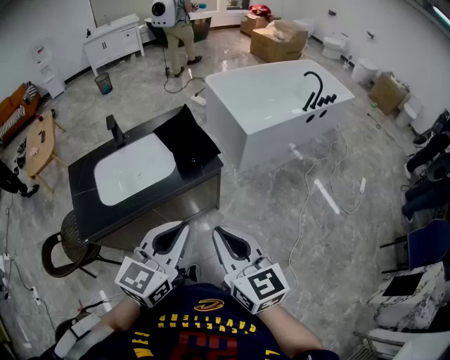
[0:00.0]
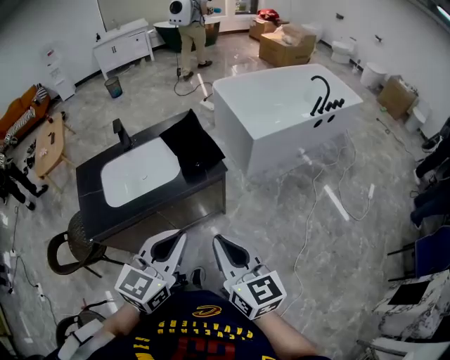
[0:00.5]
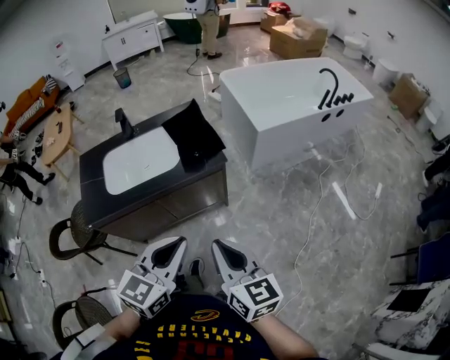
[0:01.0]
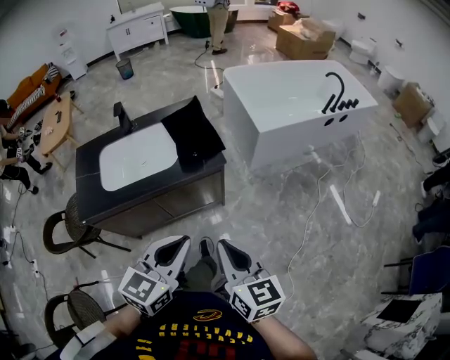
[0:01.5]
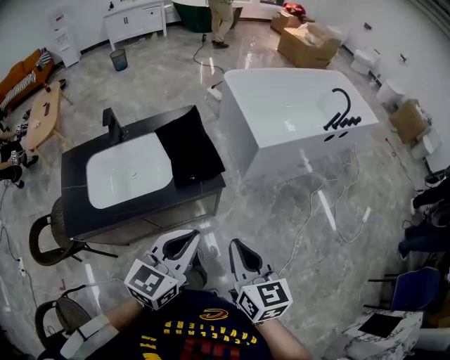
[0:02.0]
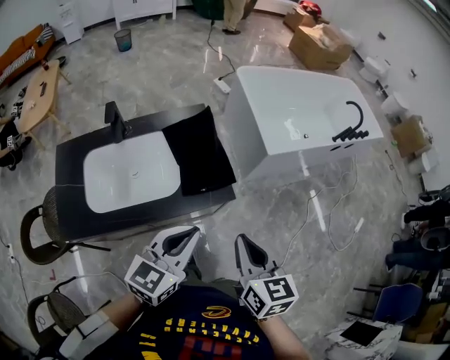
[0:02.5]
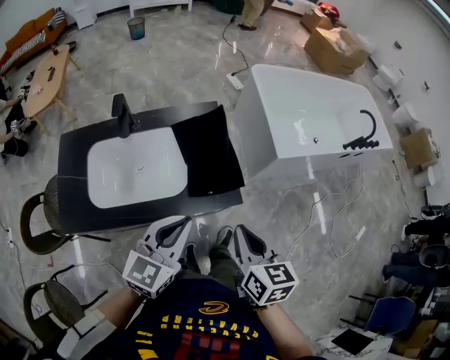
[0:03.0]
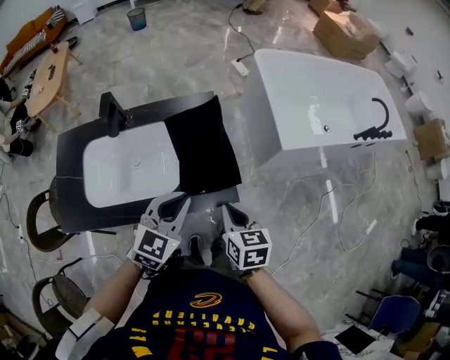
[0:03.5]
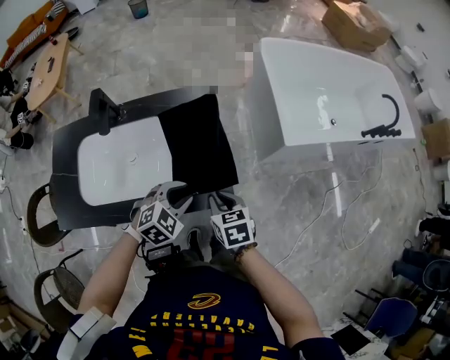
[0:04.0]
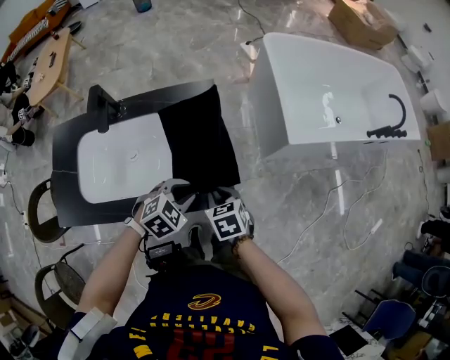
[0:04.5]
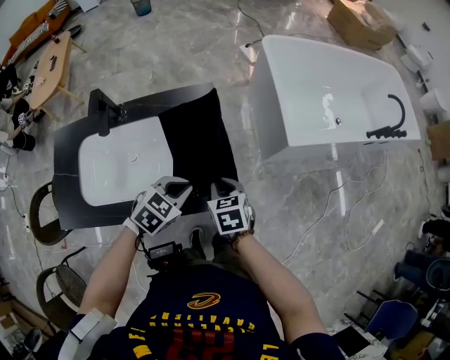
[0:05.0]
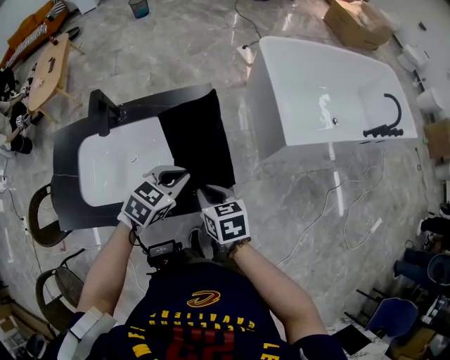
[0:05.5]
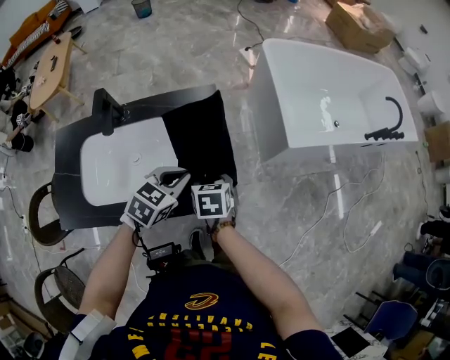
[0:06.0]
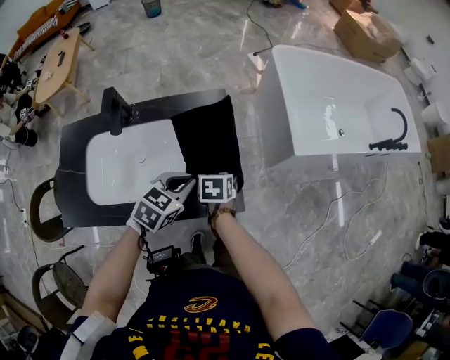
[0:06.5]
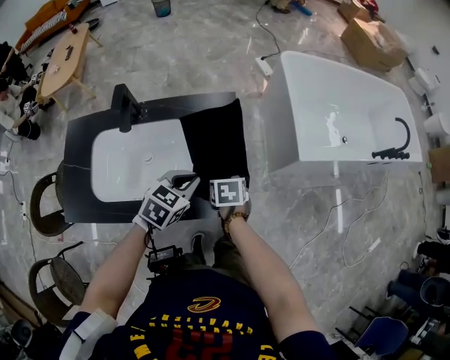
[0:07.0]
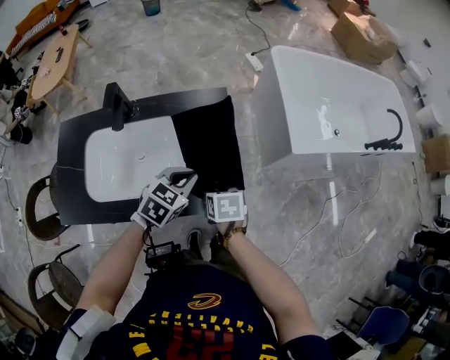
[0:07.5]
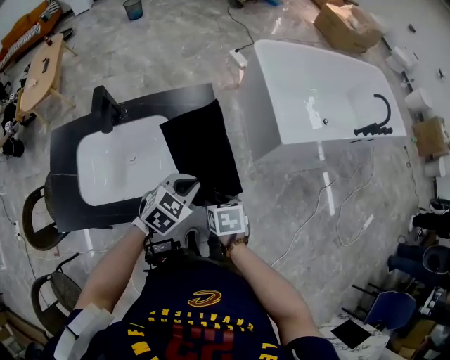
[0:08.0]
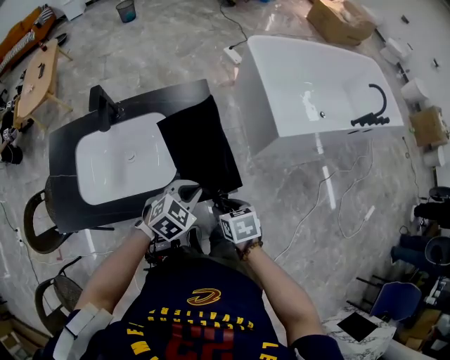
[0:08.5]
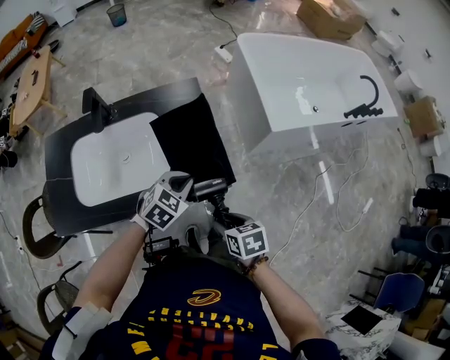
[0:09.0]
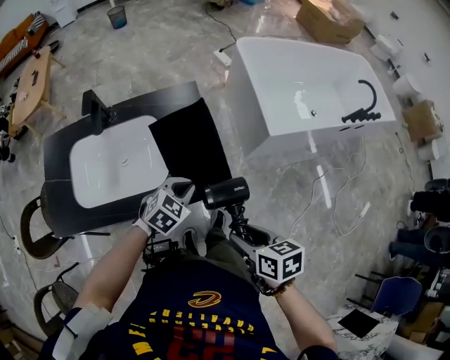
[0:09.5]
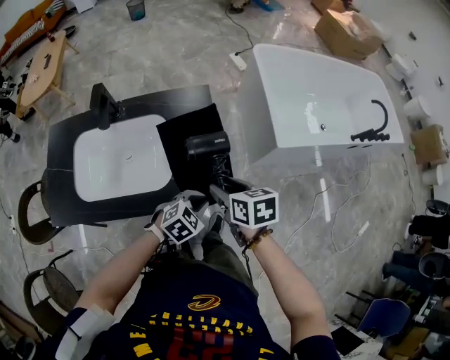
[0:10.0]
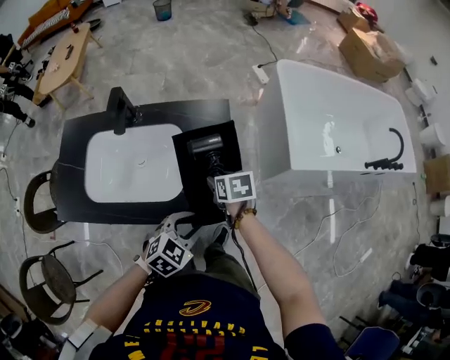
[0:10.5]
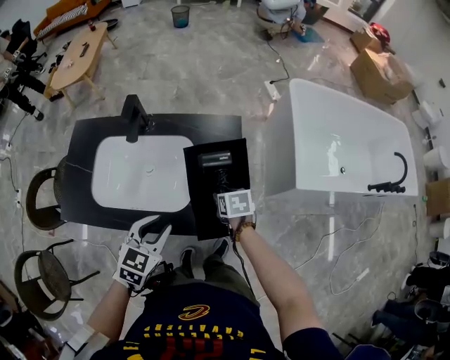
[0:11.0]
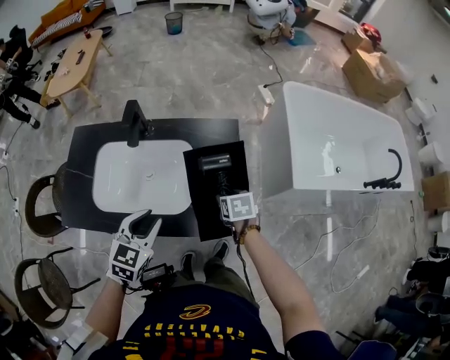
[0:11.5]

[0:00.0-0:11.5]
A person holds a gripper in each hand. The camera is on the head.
0:00.0 to 0:02.0: The left gripper shifts about 15 cm forward, downward and to the right; the right gripper heads forward, to the right and downward, covering about 15 cm.
0:02.0 to 0:04.0: Both grippers move forward and downward, roughly 35 cm. The left gripper points its fingers approximately 40 degrees further downward, and opens its fingers. Meanwhile the right gripper tilts its fingers about 30 degrees downward.
0:04.0 to 0:06.0: The right gripper heads forward and to the left, covering approximately 10 cm, and opens. Meanwhile the left gripper travels forward by approximately 5 cm, turns by about 20 degrees, and closes.
0:06.0 to 0:07.5: The grippers make only small movements.
0:07.5 to 0:09.5: The right gripper goes about 25 cm backward, to the right and upward. Meanwhile the left gripper travels backward and to the right by about 10 cm.
0:09.5 to 0:11.5: The right gripper travels forward and downward by some 30 cm, and changes its angle by about 30 degrees, while the left gripper heads to the left and upward, covering approximately 20 cm, changes its angle by roughly 40 degrees, and opens its fingers.

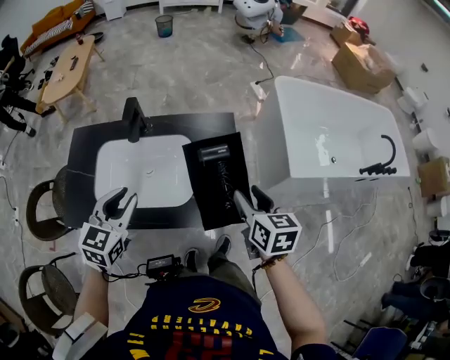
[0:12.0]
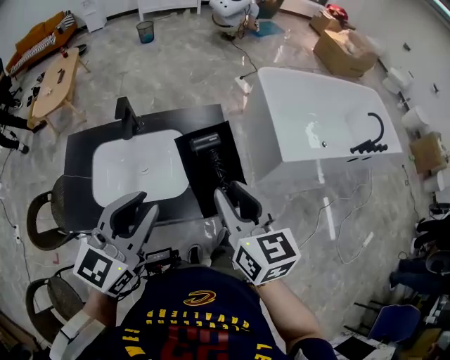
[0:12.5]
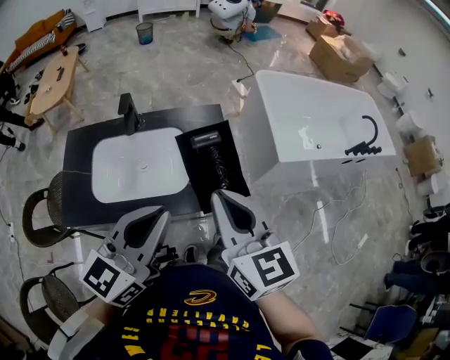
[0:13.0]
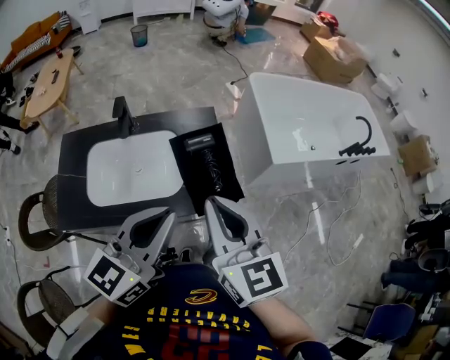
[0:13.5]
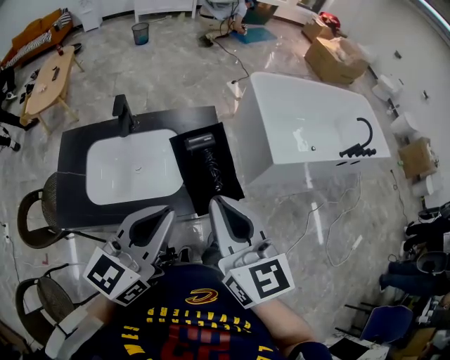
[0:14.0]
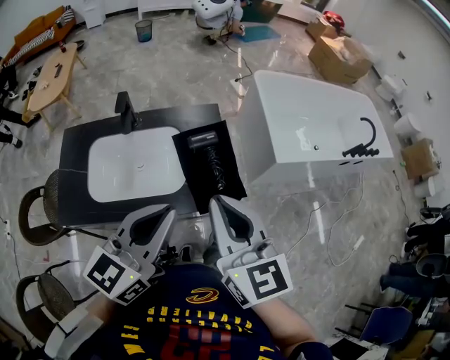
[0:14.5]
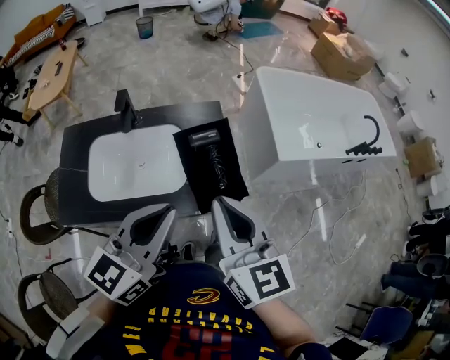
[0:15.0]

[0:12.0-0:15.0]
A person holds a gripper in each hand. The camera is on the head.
0:12.0 to 0:13.5: The left gripper goes about 25 cm upward, to the right and backward, turns by about 40 degrees, and closes its fingers, while the right gripper is displaced upward, backward and to the left by some 25 cm, changes its angle by about 30 degrees, and closes.
0:13.5 to 0:15.0: The grippers stay close to where they were, moving slightly.

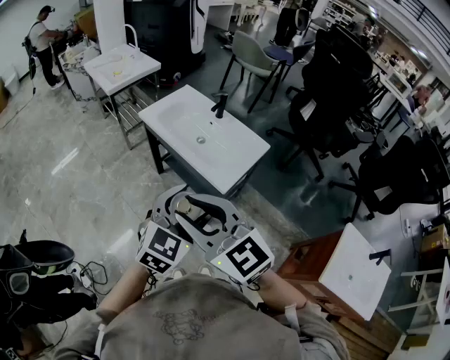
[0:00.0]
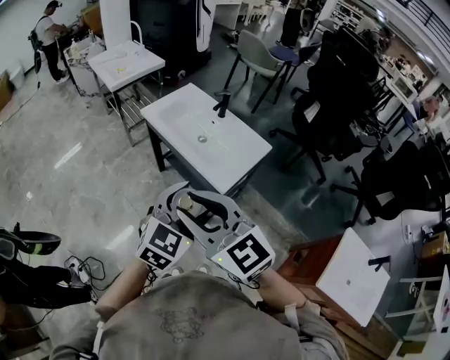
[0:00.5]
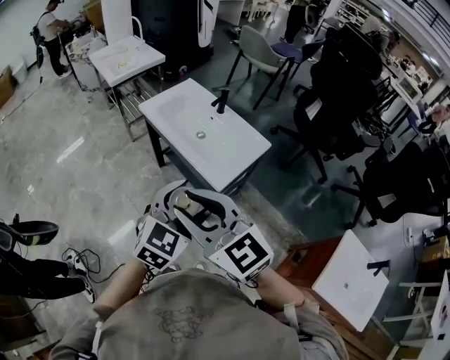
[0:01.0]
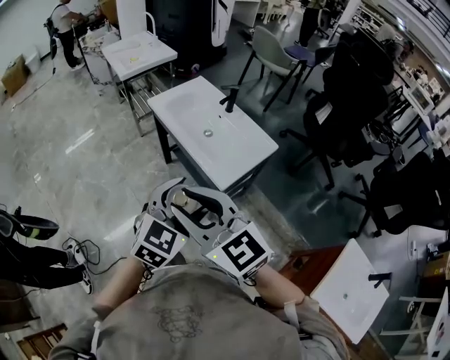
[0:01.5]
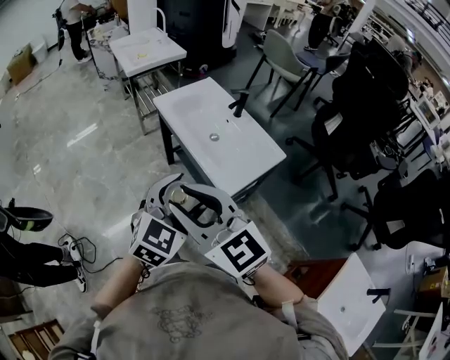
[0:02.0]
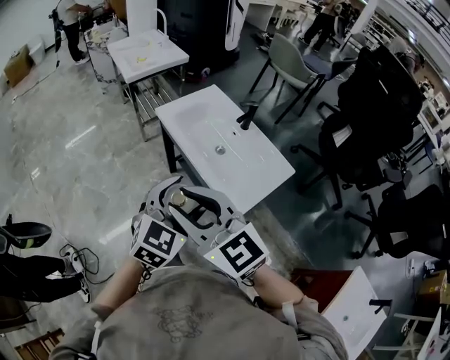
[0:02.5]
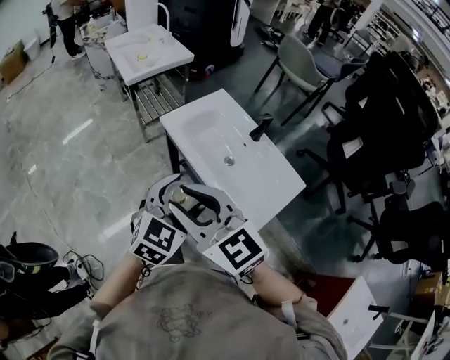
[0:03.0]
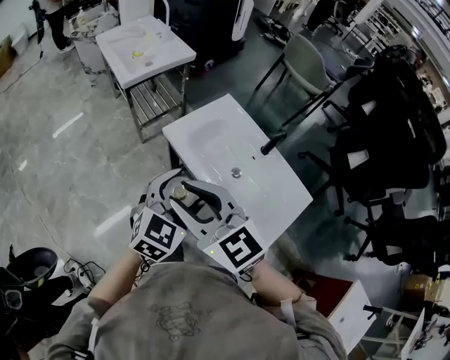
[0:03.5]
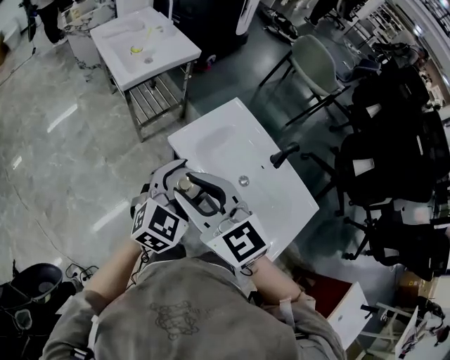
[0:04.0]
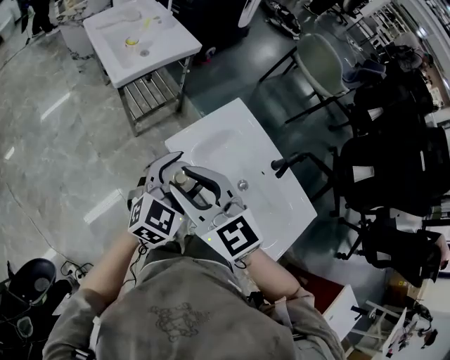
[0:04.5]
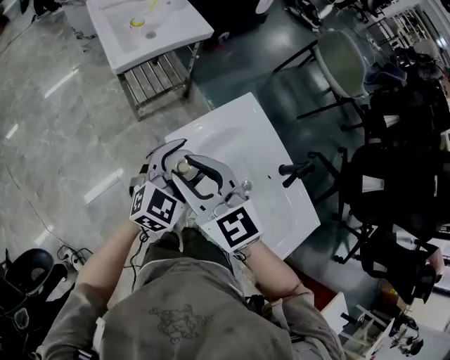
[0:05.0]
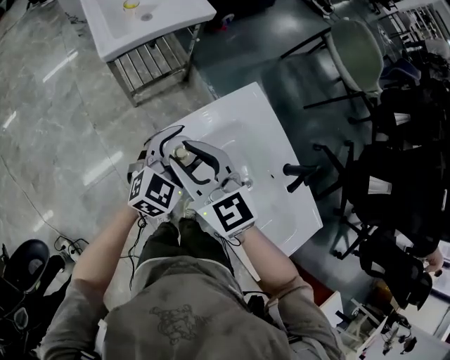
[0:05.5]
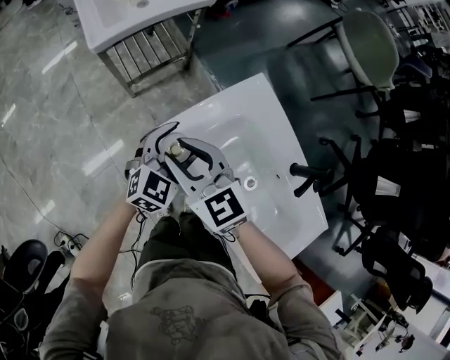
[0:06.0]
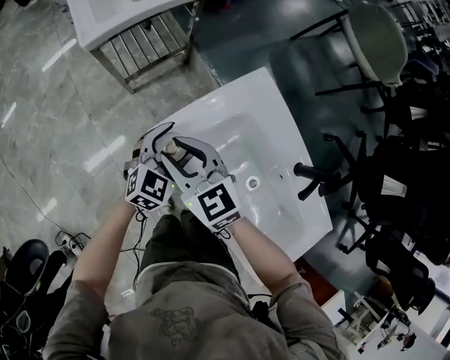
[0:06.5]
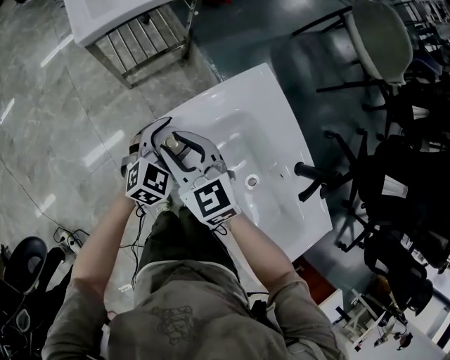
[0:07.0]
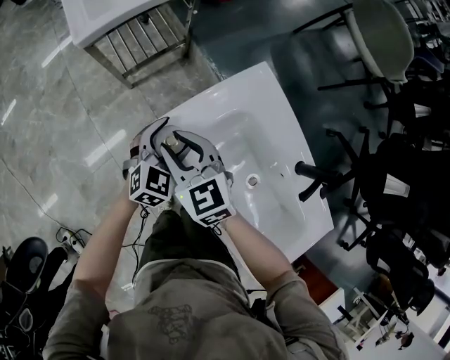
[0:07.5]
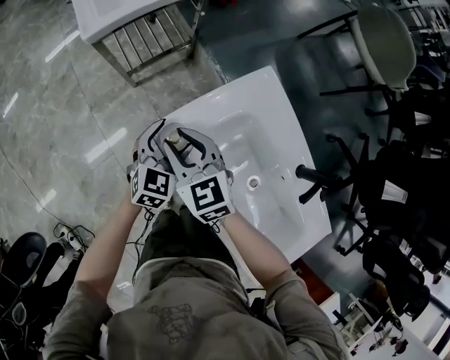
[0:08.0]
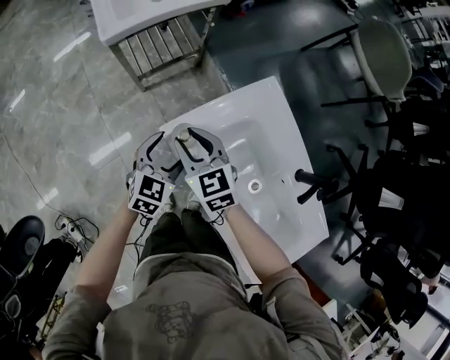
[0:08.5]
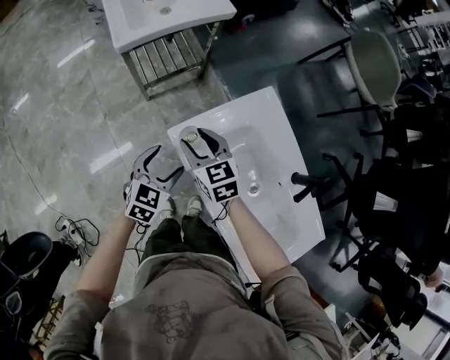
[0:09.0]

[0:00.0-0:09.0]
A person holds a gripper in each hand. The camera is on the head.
0:00.0 to 0:02.0: The right gripper shifts by about 5 cm, while the left gripper travels forward by about 5 cm.
0:02.0 to 0:04.5: Both grippers are carried forward, some 50 cm.
0:04.5 to 0:07.0: The two grippers go roughly 30 cm downward and forward.
0:07.0 to 0:09.0: The left gripper shifts some 10 cm to the left and backward.

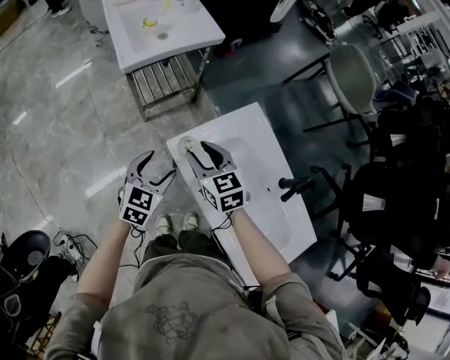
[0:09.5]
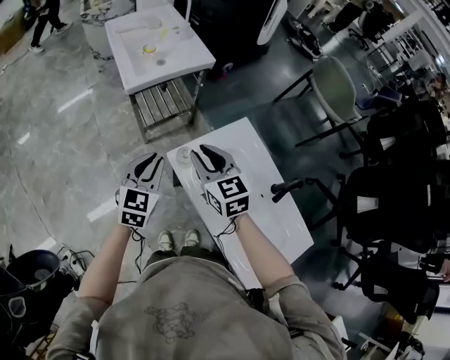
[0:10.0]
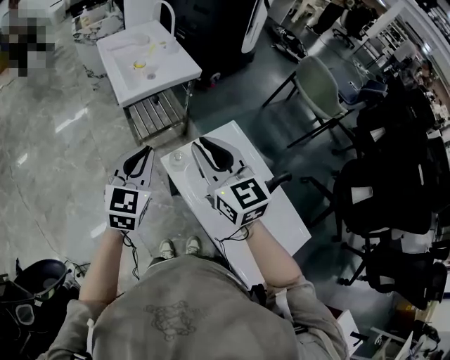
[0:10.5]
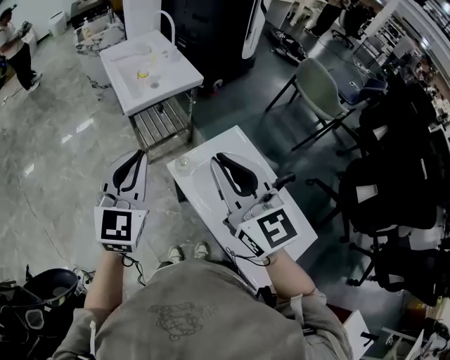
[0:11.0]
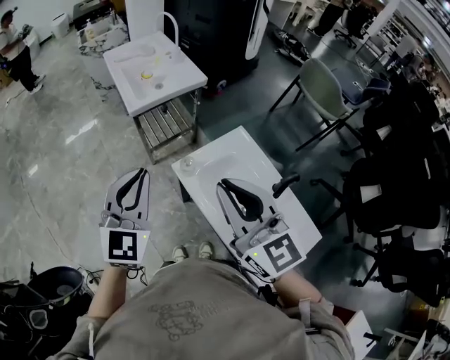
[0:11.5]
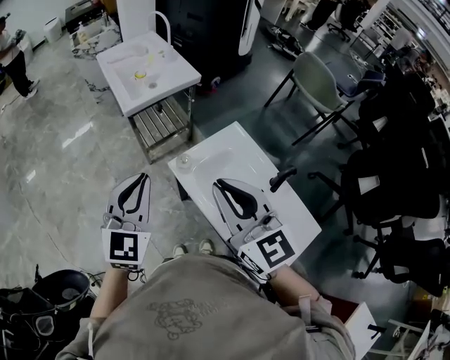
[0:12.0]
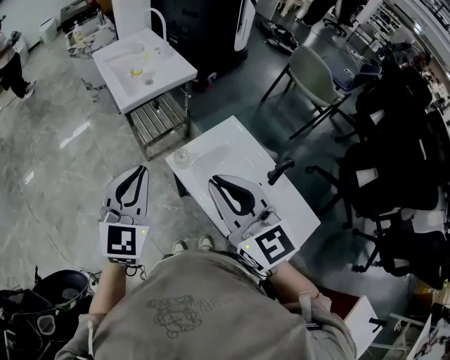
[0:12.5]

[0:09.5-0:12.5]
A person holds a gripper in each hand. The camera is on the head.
0:09.5 to 0:11.0: The right gripper moves upward and backward, approximately 35 cm, changes its angle by roughly 30 degrees, and closes up, while the left gripper travels upward by about 30 cm, rotates about 30 degrees, and closes.
0:11.0 to 0:12.5: The left gripper moves about 5 cm, while the right gripper goes roughly 5 cm backward.
